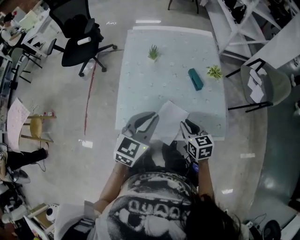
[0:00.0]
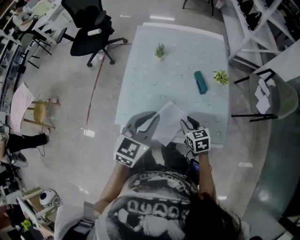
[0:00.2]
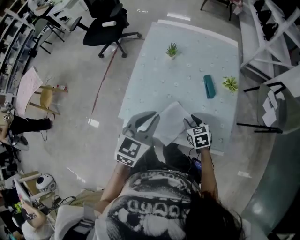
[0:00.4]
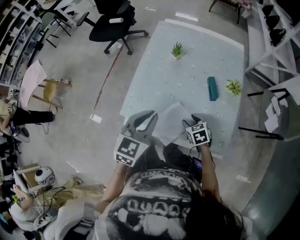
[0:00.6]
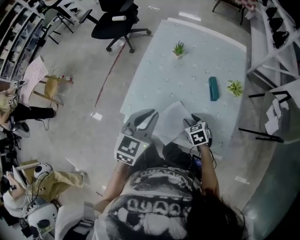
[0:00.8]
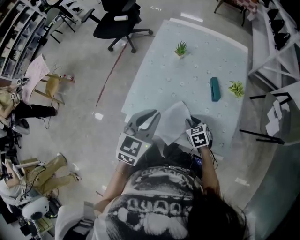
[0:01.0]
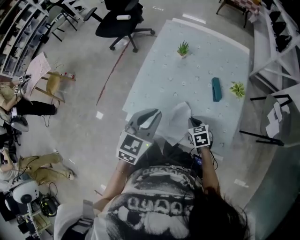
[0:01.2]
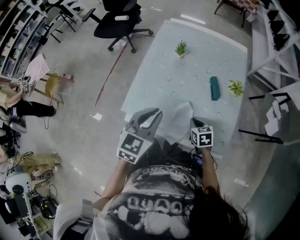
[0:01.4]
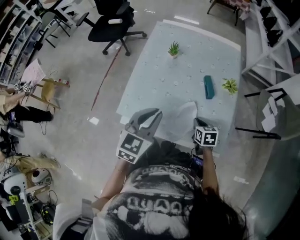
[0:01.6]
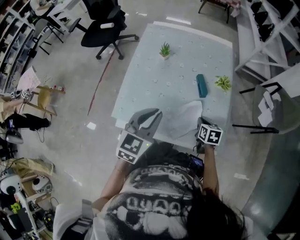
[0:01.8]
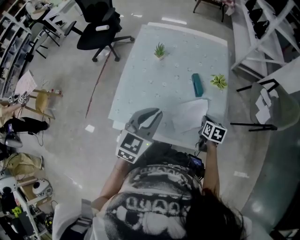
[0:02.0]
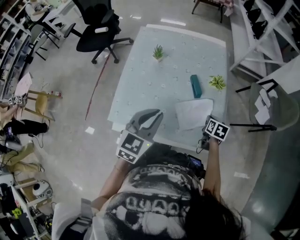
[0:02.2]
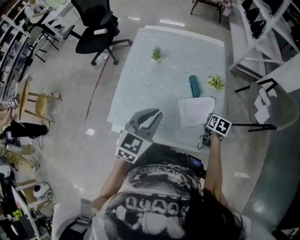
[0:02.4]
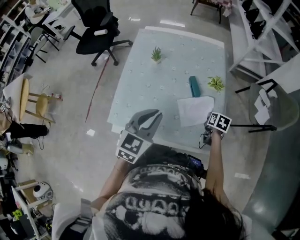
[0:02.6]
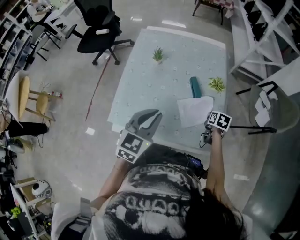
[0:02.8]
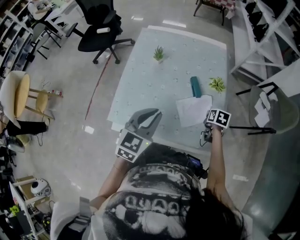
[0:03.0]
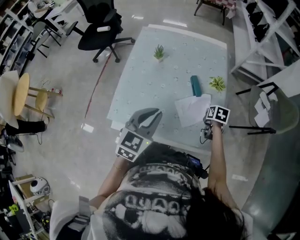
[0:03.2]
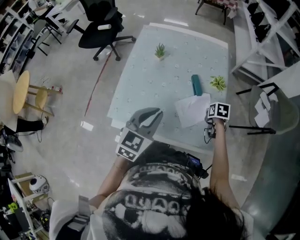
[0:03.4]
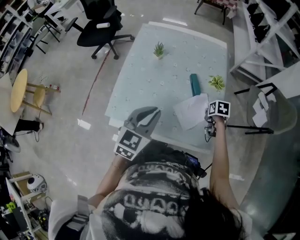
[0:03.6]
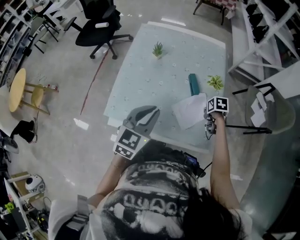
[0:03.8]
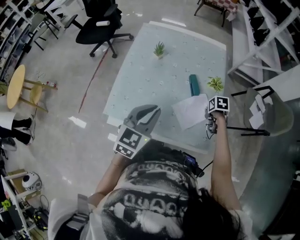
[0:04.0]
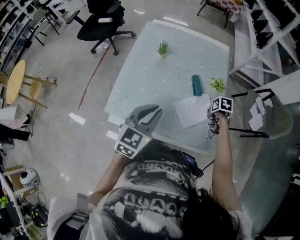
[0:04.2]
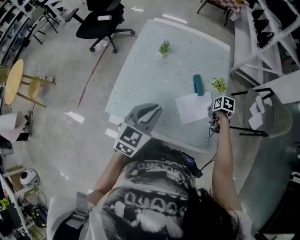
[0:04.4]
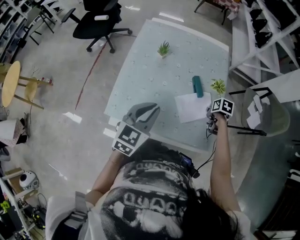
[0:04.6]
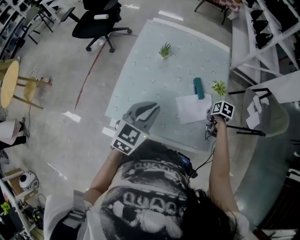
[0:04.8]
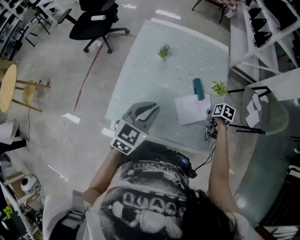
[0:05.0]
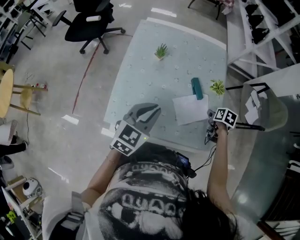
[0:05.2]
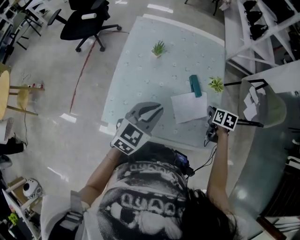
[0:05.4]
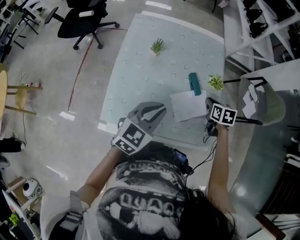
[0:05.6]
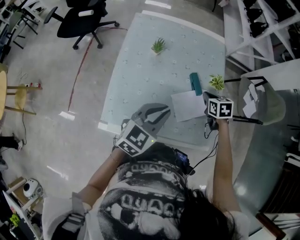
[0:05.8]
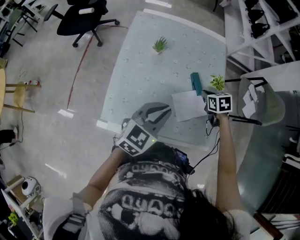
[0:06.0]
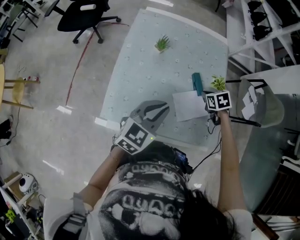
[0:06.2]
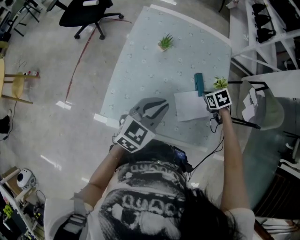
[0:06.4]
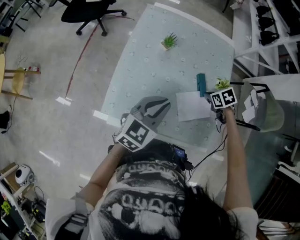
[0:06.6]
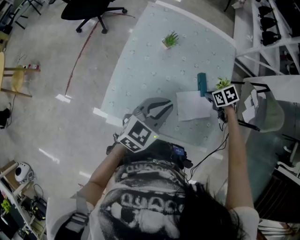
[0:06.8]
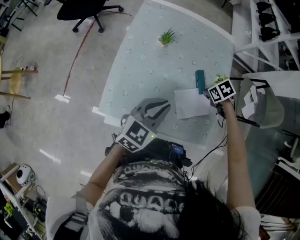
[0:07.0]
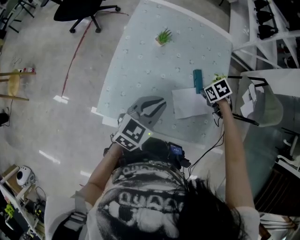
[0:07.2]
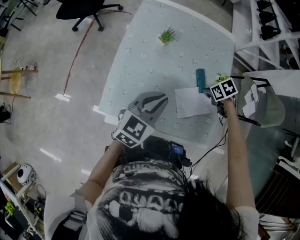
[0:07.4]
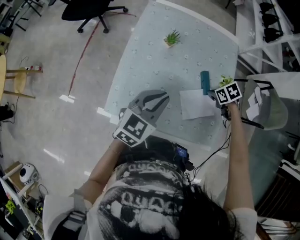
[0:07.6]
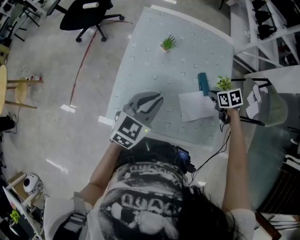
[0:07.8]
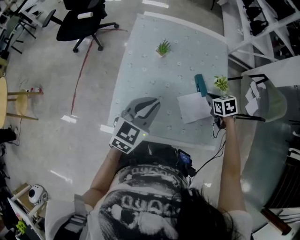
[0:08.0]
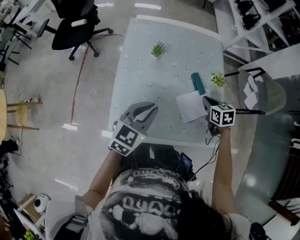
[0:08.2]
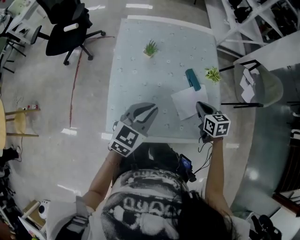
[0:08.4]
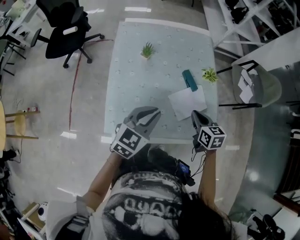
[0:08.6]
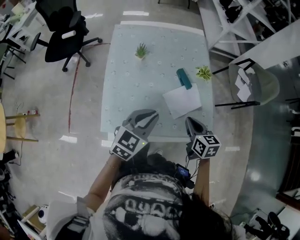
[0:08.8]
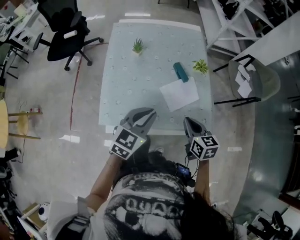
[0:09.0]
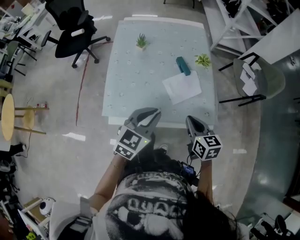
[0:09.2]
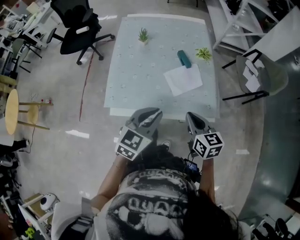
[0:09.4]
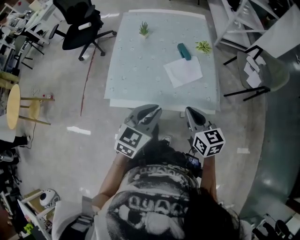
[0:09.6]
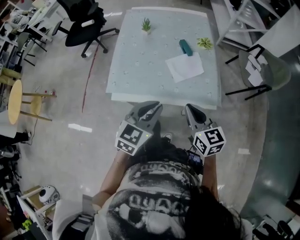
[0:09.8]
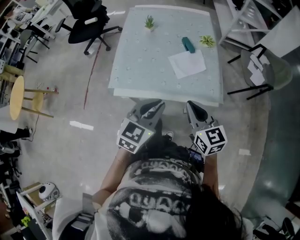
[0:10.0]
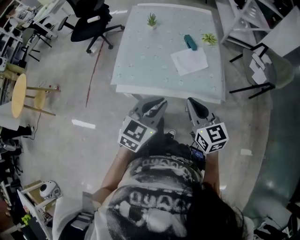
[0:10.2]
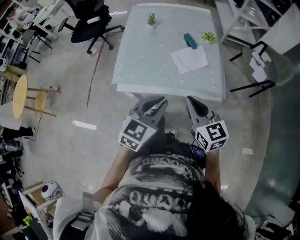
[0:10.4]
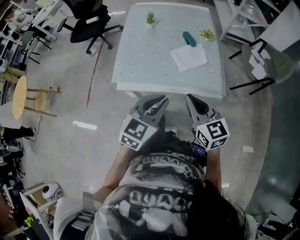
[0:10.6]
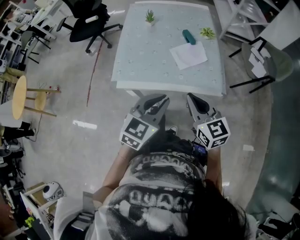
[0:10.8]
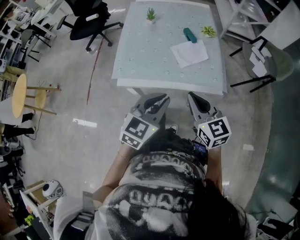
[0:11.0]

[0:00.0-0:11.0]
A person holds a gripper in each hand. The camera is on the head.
0:00.0 to 0:01.6: The right gripper travels downward and to the right by approximately 15 cm, and opens and closes again.
0:01.6 to 0:03.2: The left gripper is displaced to the right by about 5 cm; the right gripper moves to the right and forward, about 15 cm, and changes its angle by approximately 20 degrees.
0:03.2 to 0:04.8: The left gripper changes place by roughly 5 cm.
0:04.8 to 0:06.2: The right gripper is displaced to the left by roughly 10 cm, changes its angle by approximately 40 degrees, and opens, then closes again.
0:06.2 to 0:07.8: The left gripper shifts by roughly 5 cm.
0:07.8 to 0:09.4: The left gripper changes place by about 20 cm; the right gripper ends up some 30 cm from where it was, and tips its fingers upward by approximately 40 degrees.
0:09.4 to 0:11.0: The right gripper is displaced backward and upward by roughly 10 cm, and swivels some 20 degrees. Meanwhile the left gripper is displaced backward by about 10 cm.

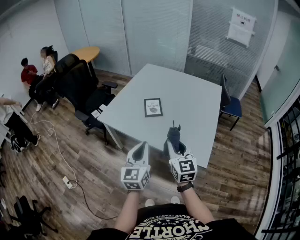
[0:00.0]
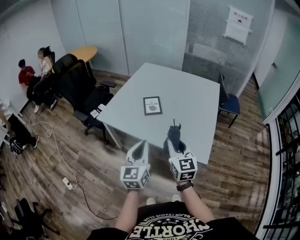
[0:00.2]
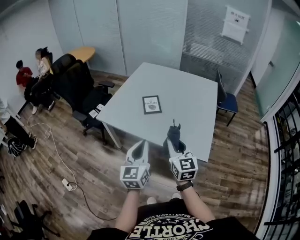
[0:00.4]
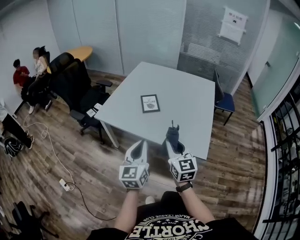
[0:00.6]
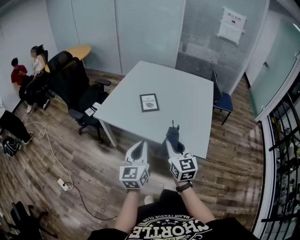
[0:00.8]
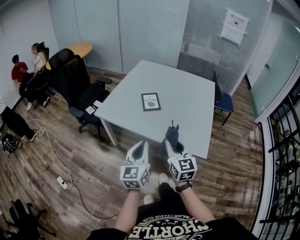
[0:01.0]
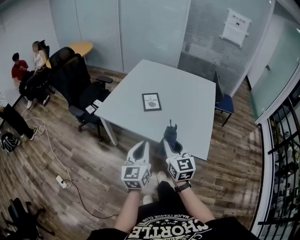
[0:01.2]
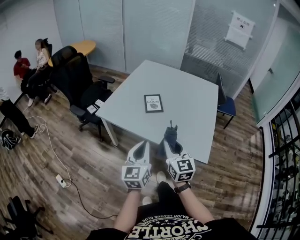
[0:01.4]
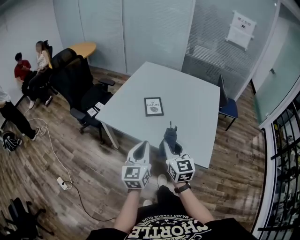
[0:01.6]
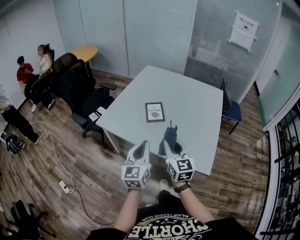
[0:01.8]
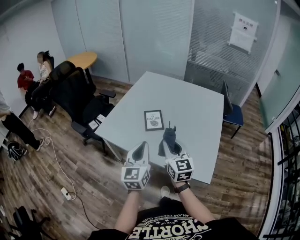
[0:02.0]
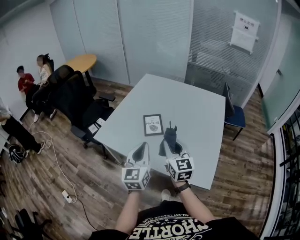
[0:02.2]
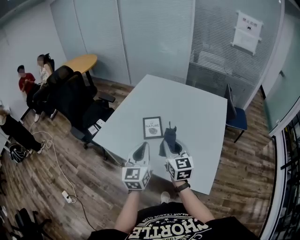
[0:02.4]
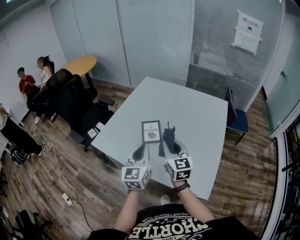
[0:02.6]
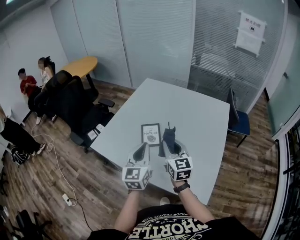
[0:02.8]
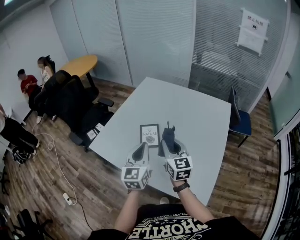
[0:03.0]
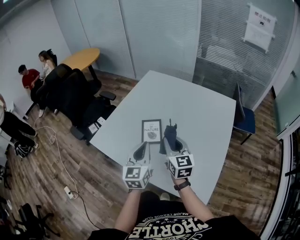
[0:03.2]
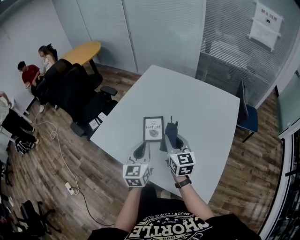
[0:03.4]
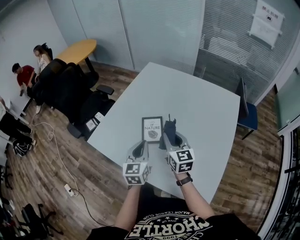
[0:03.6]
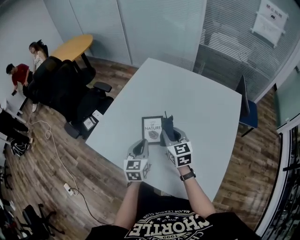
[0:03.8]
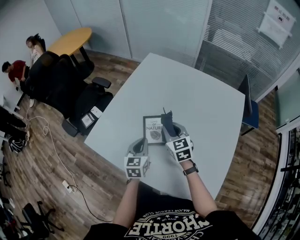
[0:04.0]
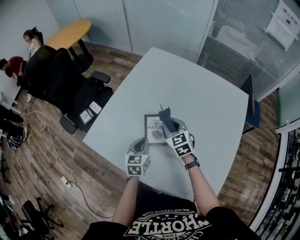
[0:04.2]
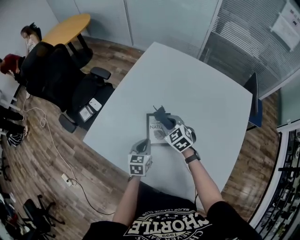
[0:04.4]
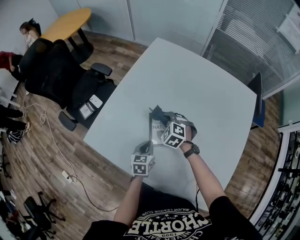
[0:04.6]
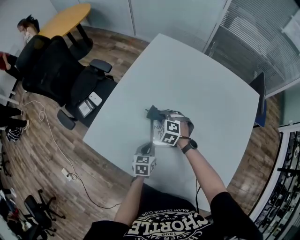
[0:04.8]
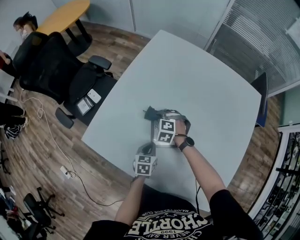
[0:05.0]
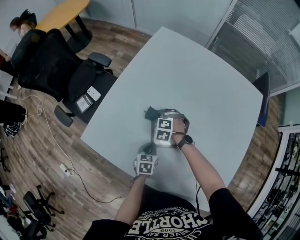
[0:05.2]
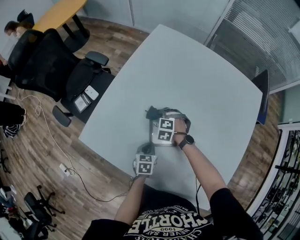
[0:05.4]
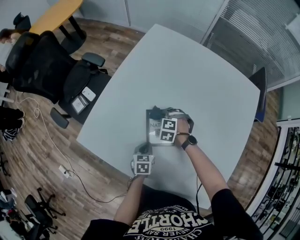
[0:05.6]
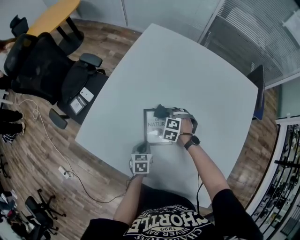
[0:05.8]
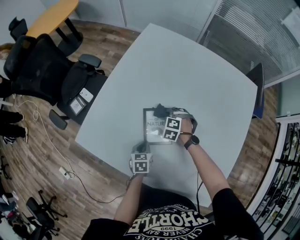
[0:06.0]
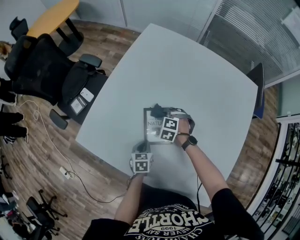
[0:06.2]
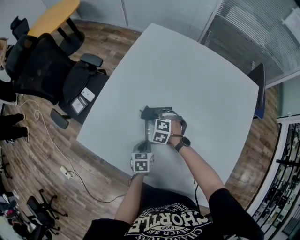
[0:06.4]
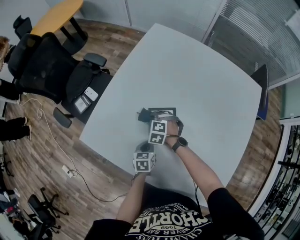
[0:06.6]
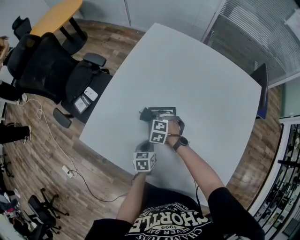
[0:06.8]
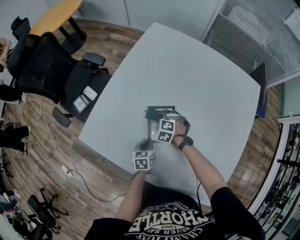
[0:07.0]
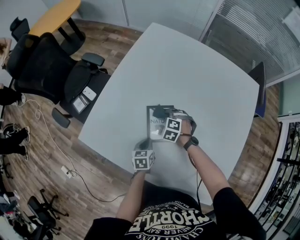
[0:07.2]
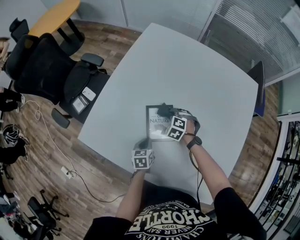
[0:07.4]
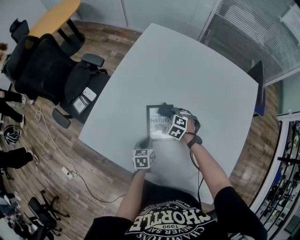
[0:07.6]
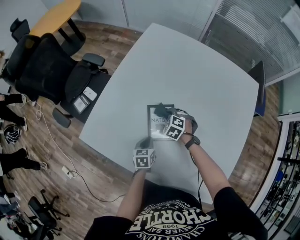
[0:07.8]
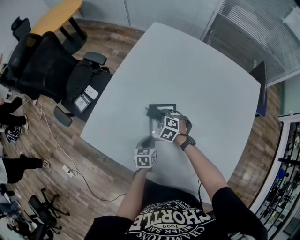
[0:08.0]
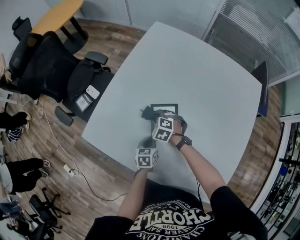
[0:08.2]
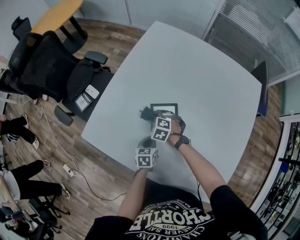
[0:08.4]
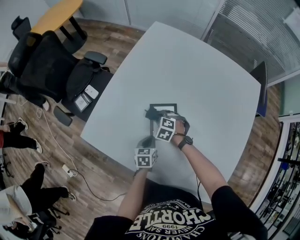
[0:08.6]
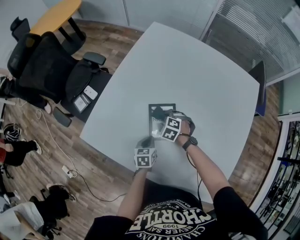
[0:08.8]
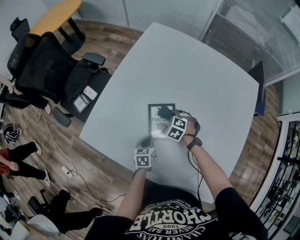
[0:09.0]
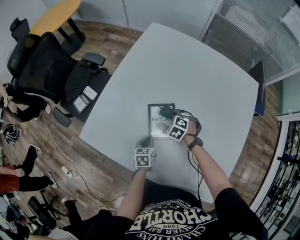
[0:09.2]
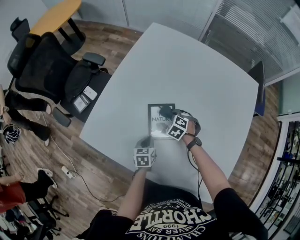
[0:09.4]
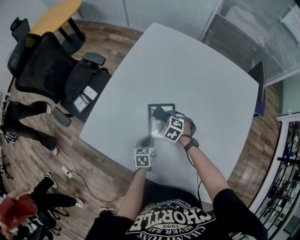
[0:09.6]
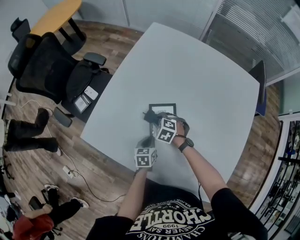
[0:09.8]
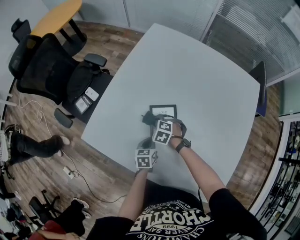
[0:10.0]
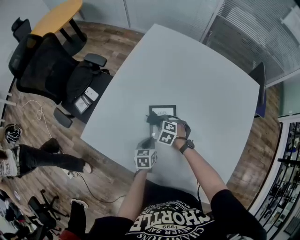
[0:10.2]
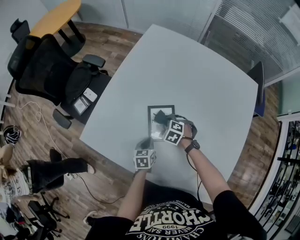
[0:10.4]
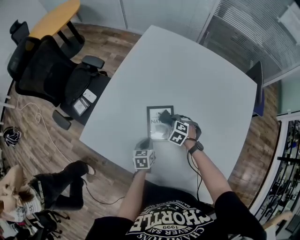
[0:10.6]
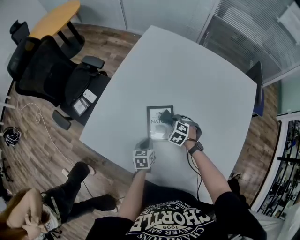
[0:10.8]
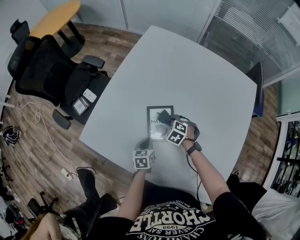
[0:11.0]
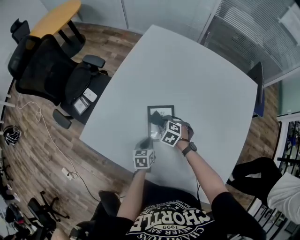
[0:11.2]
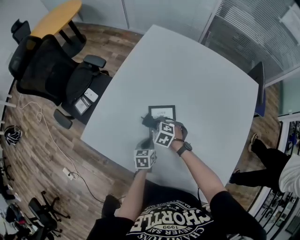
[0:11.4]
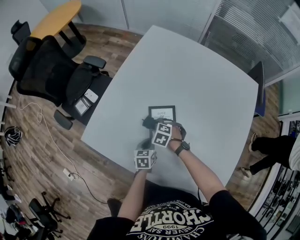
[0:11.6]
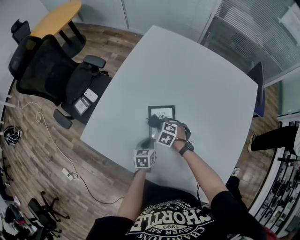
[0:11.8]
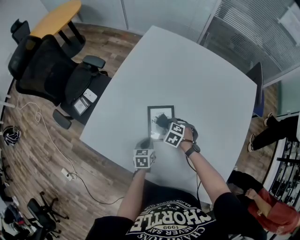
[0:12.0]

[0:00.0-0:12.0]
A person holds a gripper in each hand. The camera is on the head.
0:00.0 to 0:01.6: The left gripper changes place by approximately 5 cm; the right gripper goes about 5 cm to the left.
0:01.6 to 0:03.0: Both grippers travel together forward, approximately 30 cm.
0:03.0 to 0:04.4: The left gripper travels downward and forward by about 30 cm, and turns by approximately 30 degrees. Meanwhile the right gripper heads forward and downward, covering some 35 cm, and angles its fingers downward, by about 30 degrees.
0:04.4 to 0:06.0: The two grippers go some 15 cm downward. The right gripper swivels approximately 40 degrees.
0:06.0 to 0:07.6: The right gripper moves about 10 cm to the left and comes back.
0:07.6 to 0:09.0: The right gripper moves approximately 10 cm to the left and comes back.
0:09.0 to 0:10.4: The right gripper travels to the left and back again, roughly 10 cm each way.
0:10.4 to 0:12.0: The right gripper moves left and right over some 10 cm, changing direction 2 times.

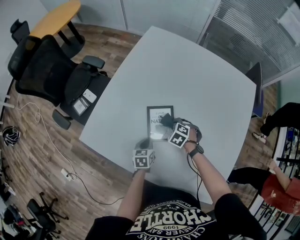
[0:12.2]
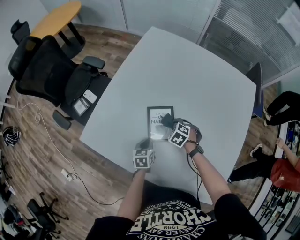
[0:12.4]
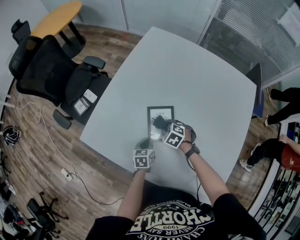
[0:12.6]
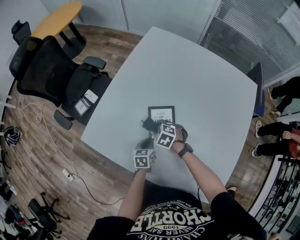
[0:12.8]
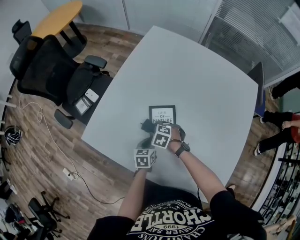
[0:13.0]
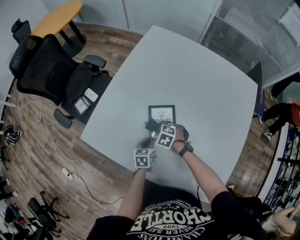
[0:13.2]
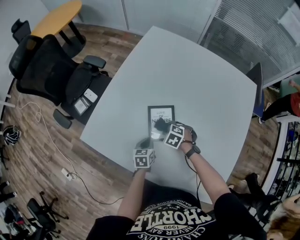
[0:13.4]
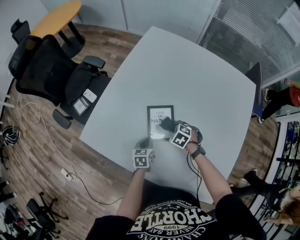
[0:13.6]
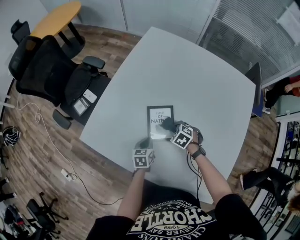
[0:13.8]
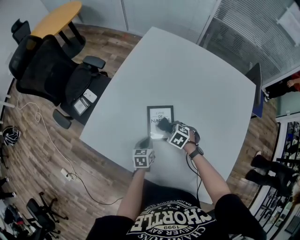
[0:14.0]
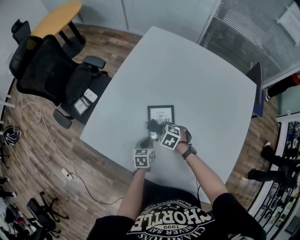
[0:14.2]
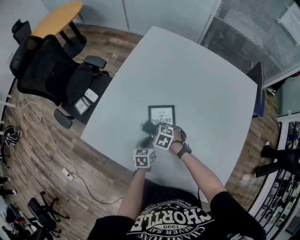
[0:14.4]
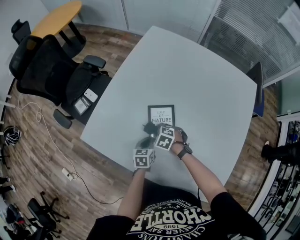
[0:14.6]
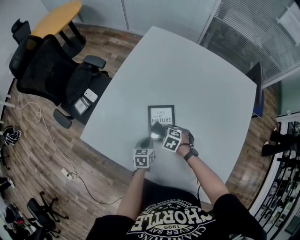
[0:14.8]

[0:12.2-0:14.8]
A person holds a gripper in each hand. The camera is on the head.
0:13.4 to 0:14.8: The right gripper goes left and right, roughly 10 cm each way, reversing 2 times.
